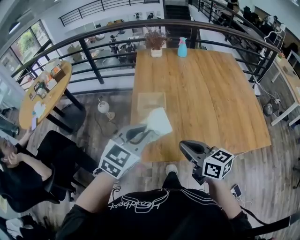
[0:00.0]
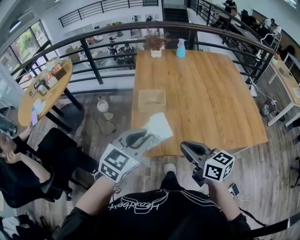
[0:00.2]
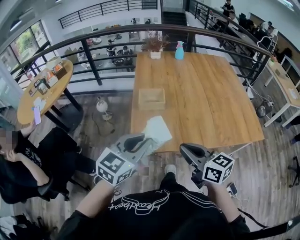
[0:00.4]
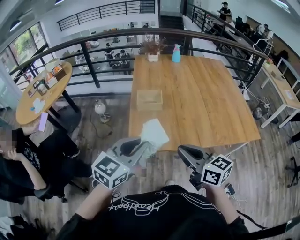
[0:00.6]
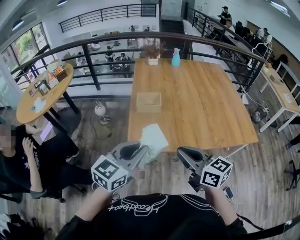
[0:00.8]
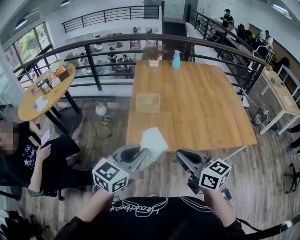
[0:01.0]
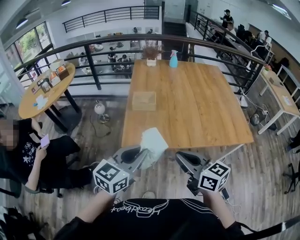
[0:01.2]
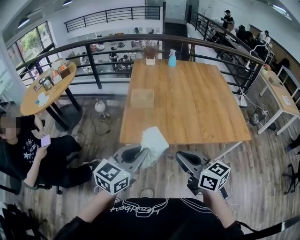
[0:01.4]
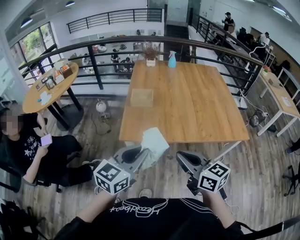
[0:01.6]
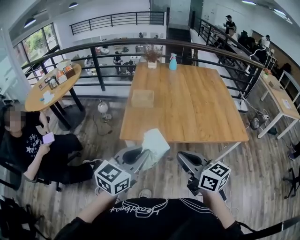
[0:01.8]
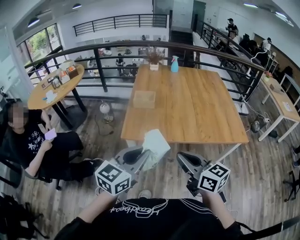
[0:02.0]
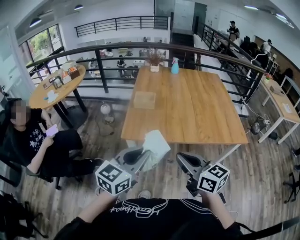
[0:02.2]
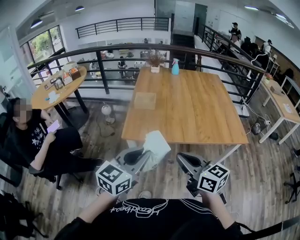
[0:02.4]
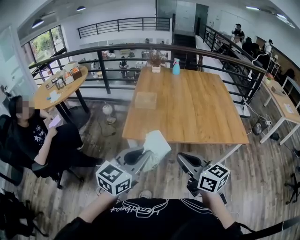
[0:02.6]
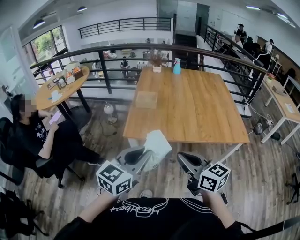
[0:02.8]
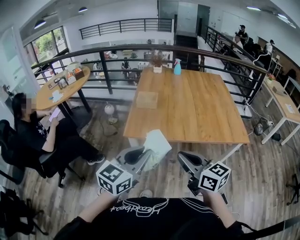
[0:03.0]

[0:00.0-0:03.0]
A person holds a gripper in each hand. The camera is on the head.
0:00.0 to 0:01.6: Both grippers move backward, some 30 cm. The left gripper rotates approximately 20 degrees.
0:01.6 to 0:03.0: Both grippers move backward, approximately 10 cm.

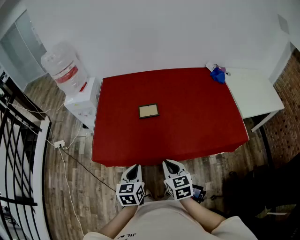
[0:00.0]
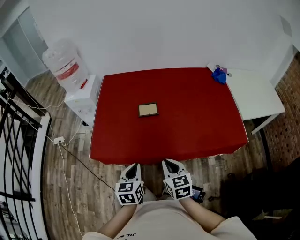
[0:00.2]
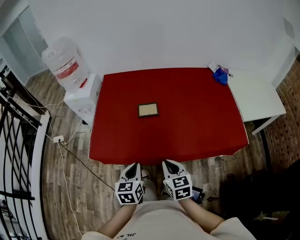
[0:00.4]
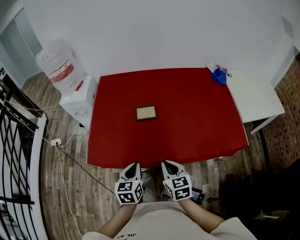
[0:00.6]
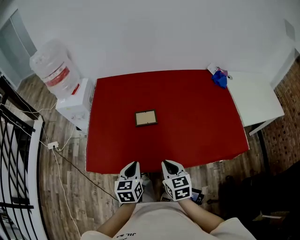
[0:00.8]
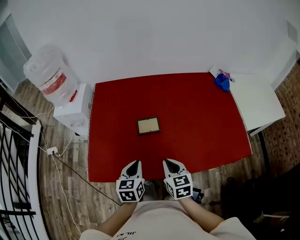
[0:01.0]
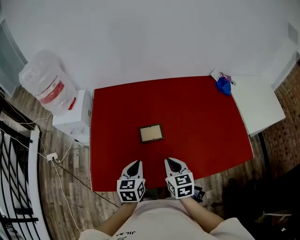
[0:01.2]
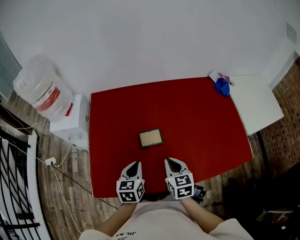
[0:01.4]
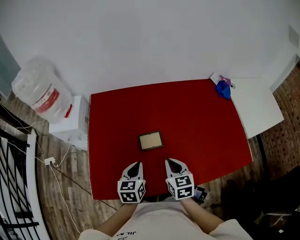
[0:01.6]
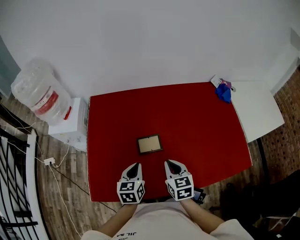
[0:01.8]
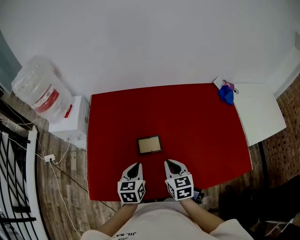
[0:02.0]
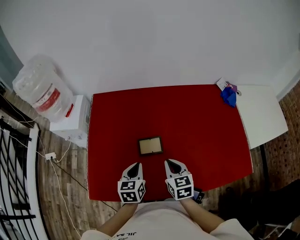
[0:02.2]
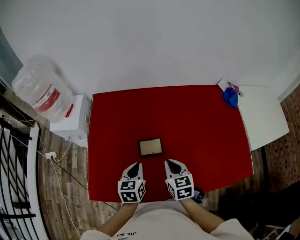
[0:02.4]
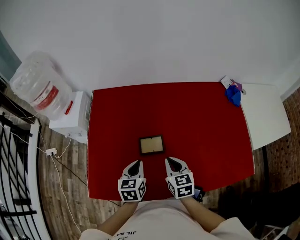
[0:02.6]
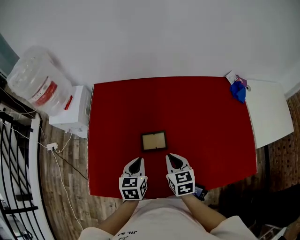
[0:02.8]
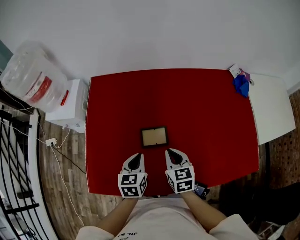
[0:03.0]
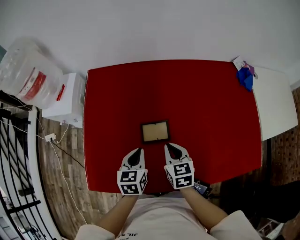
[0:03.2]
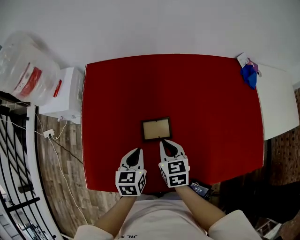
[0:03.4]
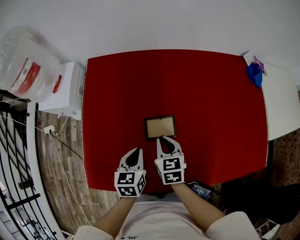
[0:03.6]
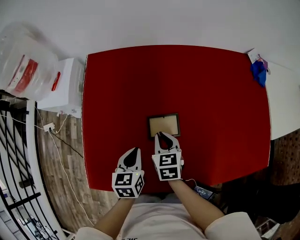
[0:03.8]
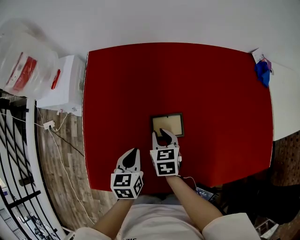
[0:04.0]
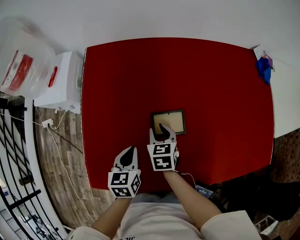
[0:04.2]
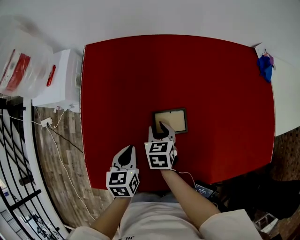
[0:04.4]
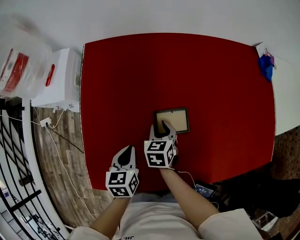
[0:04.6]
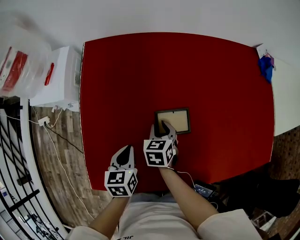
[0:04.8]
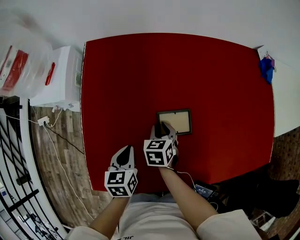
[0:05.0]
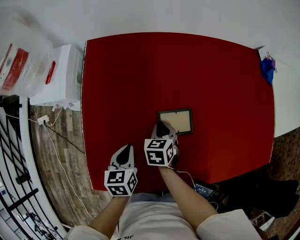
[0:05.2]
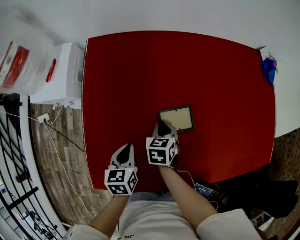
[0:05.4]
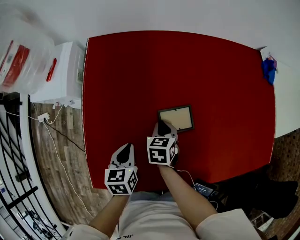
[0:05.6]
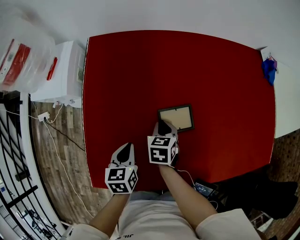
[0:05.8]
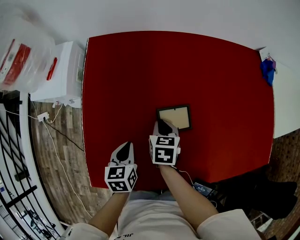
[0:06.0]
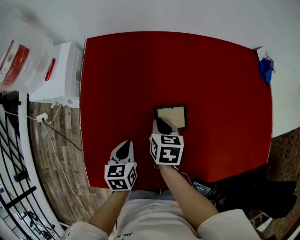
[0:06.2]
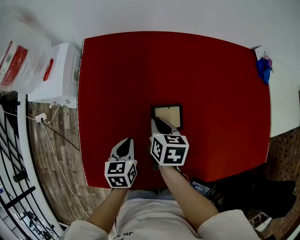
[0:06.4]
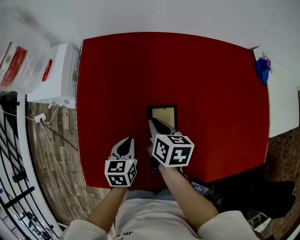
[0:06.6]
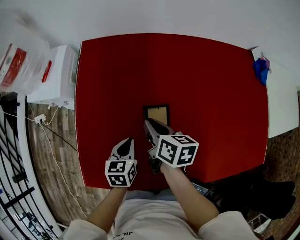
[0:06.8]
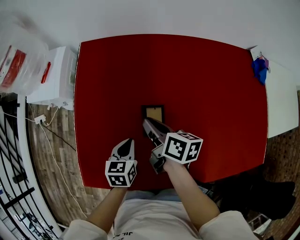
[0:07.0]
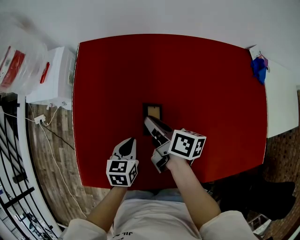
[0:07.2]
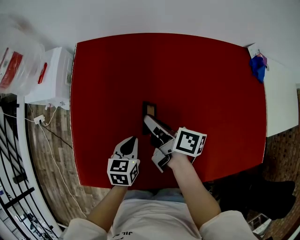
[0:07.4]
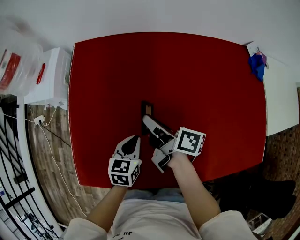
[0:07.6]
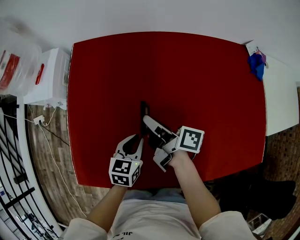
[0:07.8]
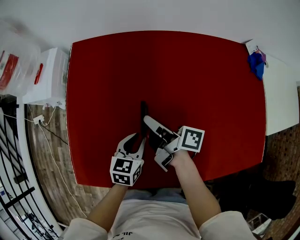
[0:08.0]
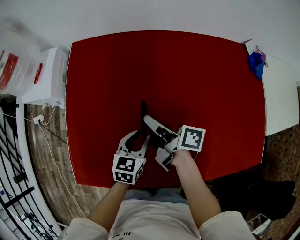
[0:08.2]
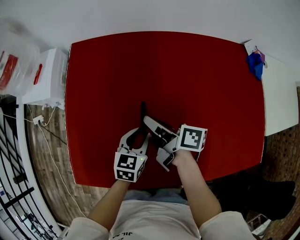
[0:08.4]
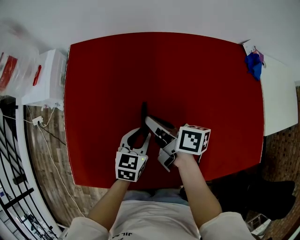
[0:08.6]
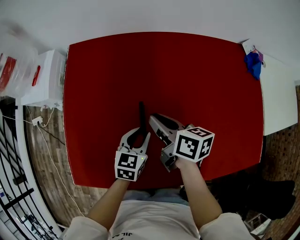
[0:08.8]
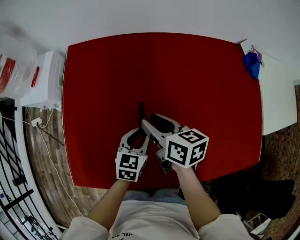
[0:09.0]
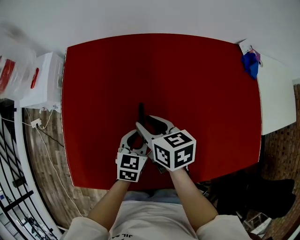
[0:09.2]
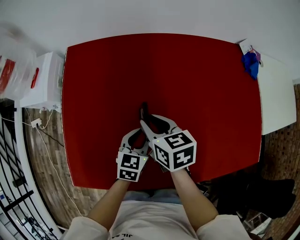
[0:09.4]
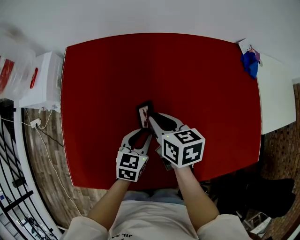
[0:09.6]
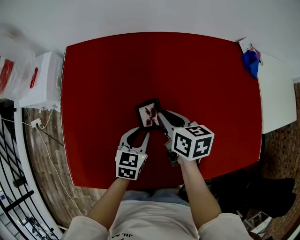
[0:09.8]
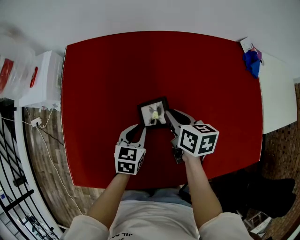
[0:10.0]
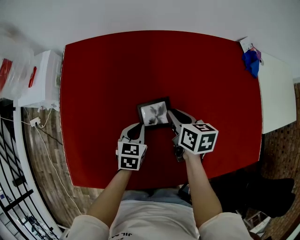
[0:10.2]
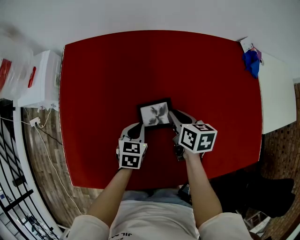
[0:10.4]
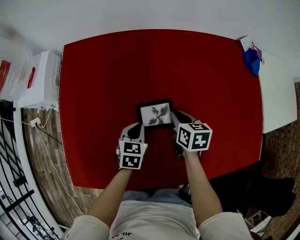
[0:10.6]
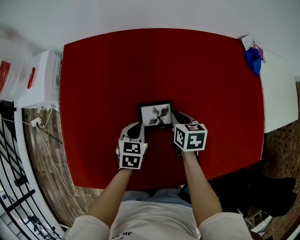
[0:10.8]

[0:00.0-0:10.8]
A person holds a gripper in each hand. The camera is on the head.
0:00.0 to 0:01.6: The grippers both shift forward by about 25 cm.
0:01.6 to 0:03.0: Both grippers travel together forward, some 5 cm.
0:03.0 to 0:04.6: The left gripper travels to the left and downward by some 15 cm. The right gripper heads downward, to the left and forward, covering roughly 20 cm, and opens.
0:04.6 to 0:06.2: The grippers stay close to where they were, moving slightly.
0:06.2 to 0:07.8: The right gripper travels upward by about 10 cm, and points its fingers about 40 degrees further upward. The left gripper shifts roughly 15 cm to the right.
0:07.8 to 0:09.2: The right gripper rolls counterclockwise, seen from behind, by some 40 degrees, and opens, while the left gripper goes approximately 5 cm to the right.
0:09.2 to 0:10.8: The left gripper goes about 5 cm downward, and closes its fingers, while the right gripper is displaced to the right and downward by approximately 20 cm, turns by roughly 20 degrees, and closes up.

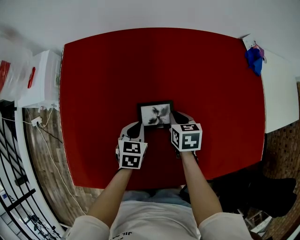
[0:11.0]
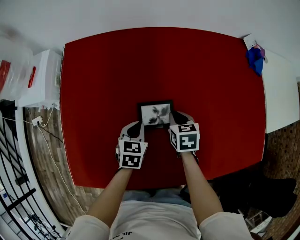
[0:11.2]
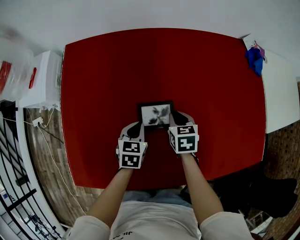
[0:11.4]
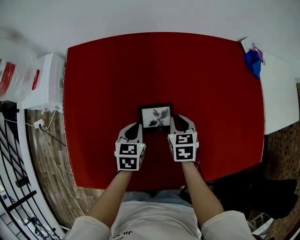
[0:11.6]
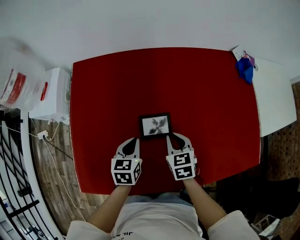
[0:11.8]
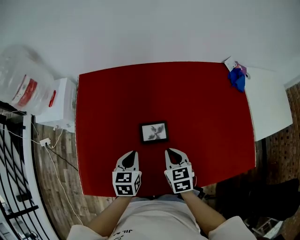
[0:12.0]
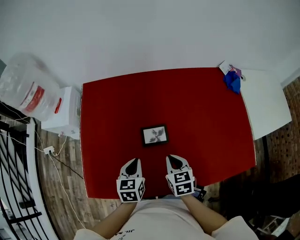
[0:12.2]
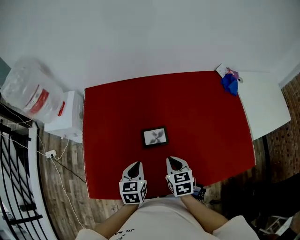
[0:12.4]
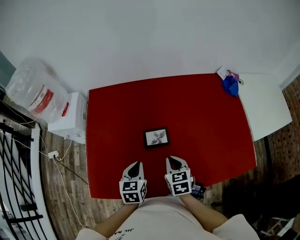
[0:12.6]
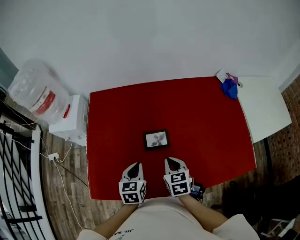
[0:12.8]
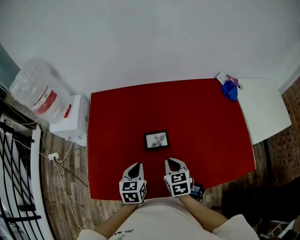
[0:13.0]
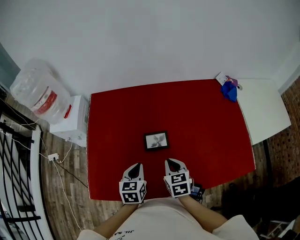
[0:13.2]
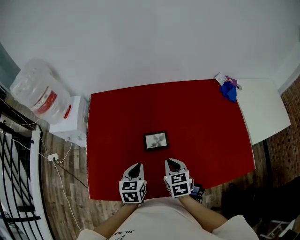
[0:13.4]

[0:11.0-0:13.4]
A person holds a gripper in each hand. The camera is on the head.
0:11.0 to 0:12.2: Both grippers move upward and backward, about 20 cm.
0:12.2 to 0:13.4: There are only small adjustments of the grippers.

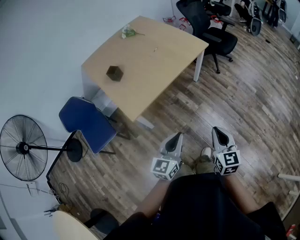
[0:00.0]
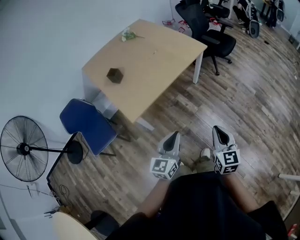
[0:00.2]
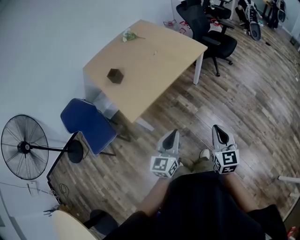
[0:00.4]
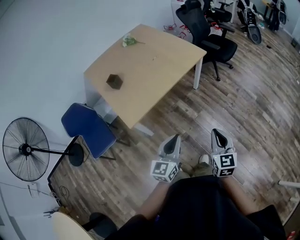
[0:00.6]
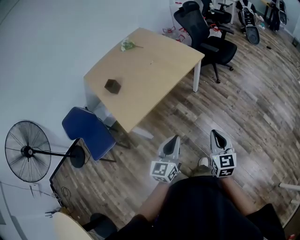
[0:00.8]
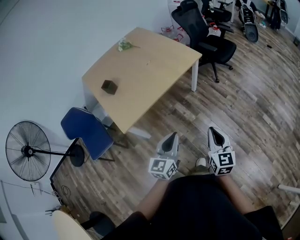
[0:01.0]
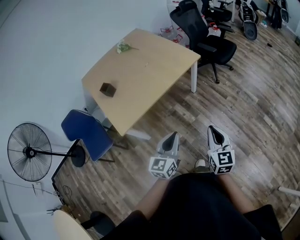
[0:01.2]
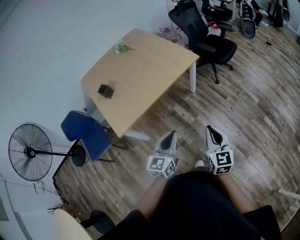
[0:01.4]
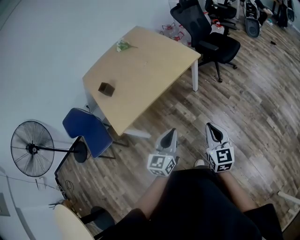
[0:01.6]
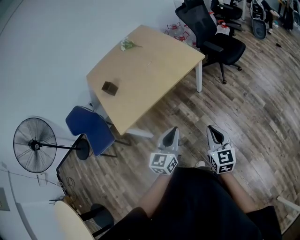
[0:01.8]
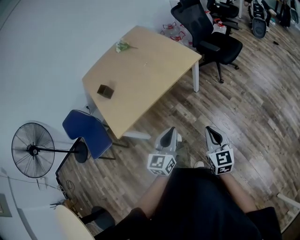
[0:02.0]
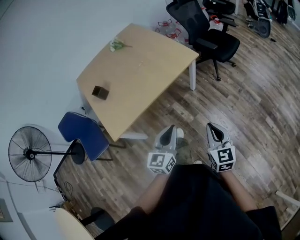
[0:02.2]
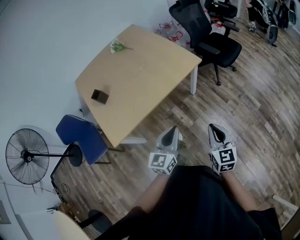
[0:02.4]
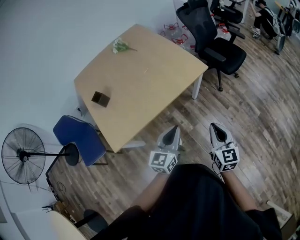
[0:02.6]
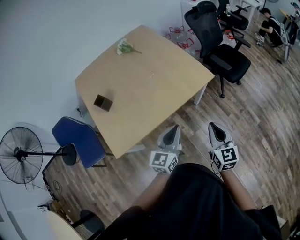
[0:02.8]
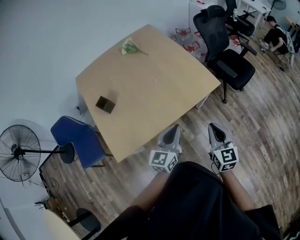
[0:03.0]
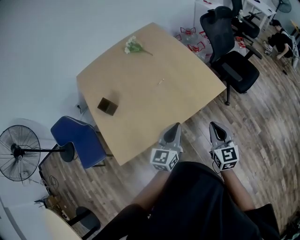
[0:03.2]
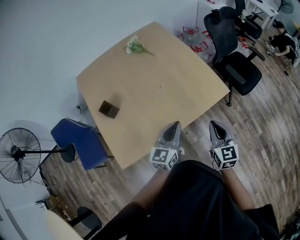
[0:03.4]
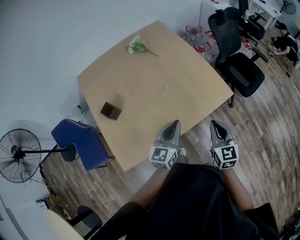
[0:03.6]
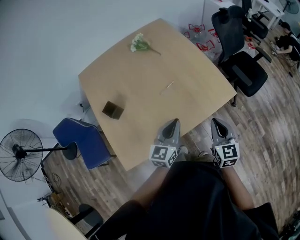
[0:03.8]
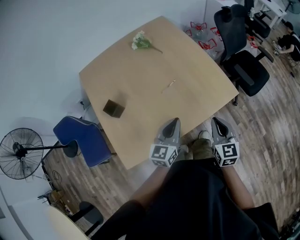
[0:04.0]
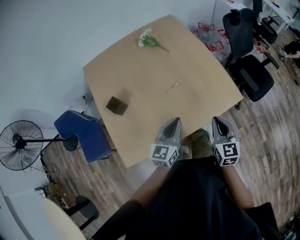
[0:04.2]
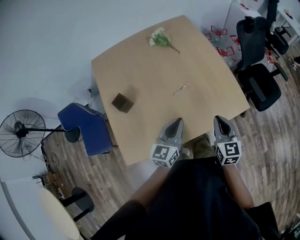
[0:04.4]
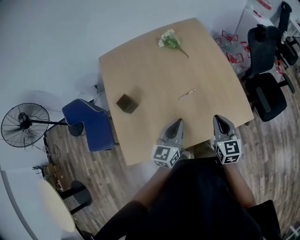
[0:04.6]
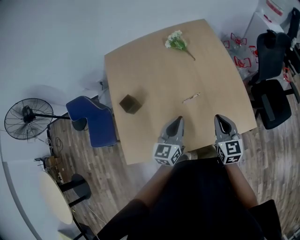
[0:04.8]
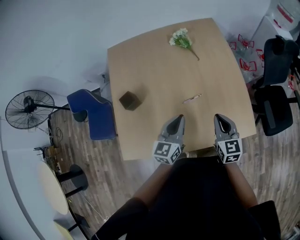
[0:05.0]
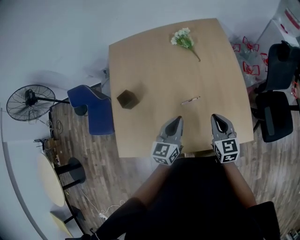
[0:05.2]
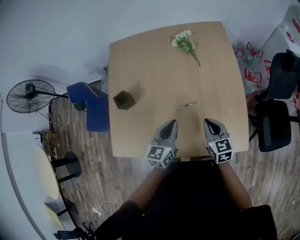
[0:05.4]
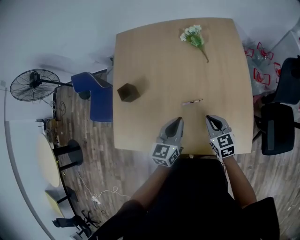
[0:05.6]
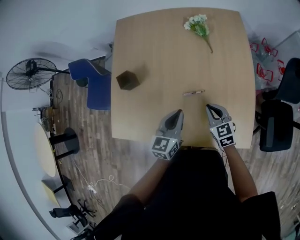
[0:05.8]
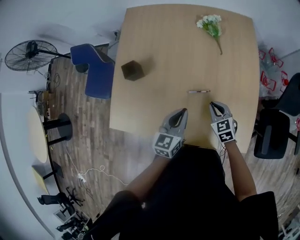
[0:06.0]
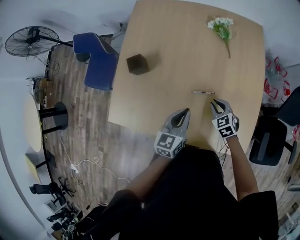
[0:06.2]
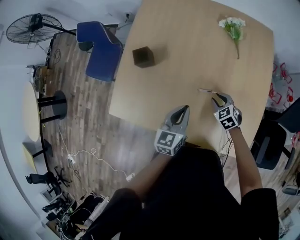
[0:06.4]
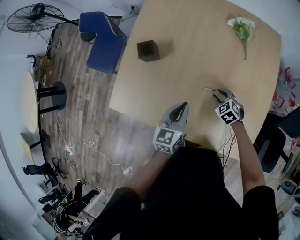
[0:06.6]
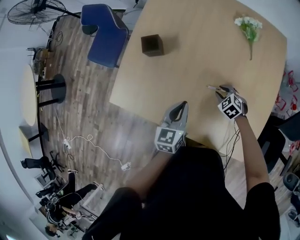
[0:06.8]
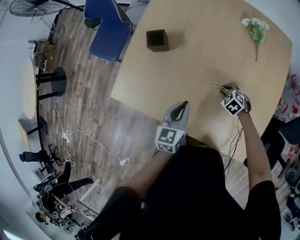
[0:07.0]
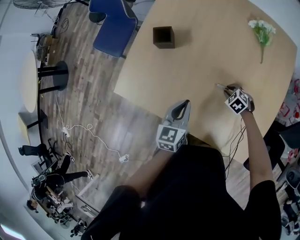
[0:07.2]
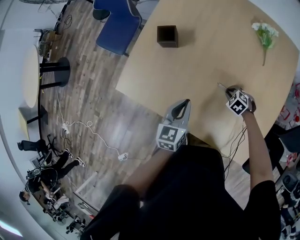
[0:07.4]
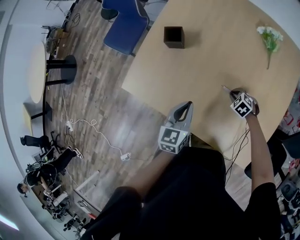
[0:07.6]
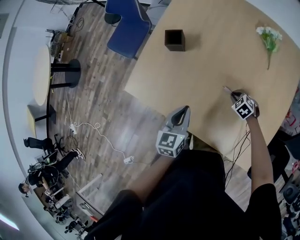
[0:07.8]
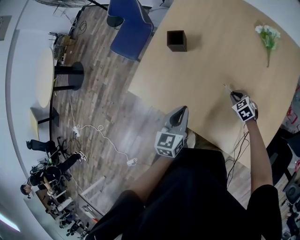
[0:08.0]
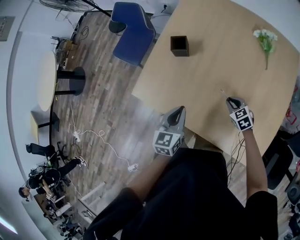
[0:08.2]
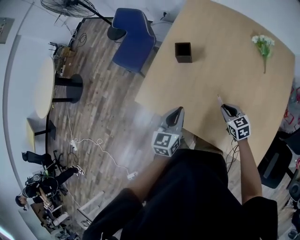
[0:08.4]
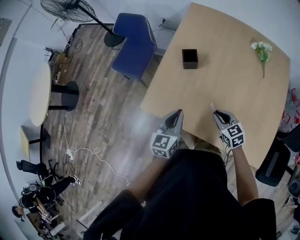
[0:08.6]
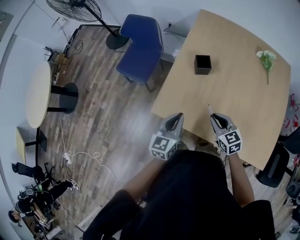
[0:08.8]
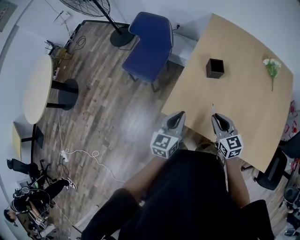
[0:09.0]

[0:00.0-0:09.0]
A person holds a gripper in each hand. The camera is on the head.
0:00.0 to 0:01.6: Both grippers move to the right and forward, roughly 25 cm.
0:01.6 to 0:03.0: The two grippers go approximately 35 cm forward.
0:03.0 to 0:04.4: The grippers both shift forward and to the left by roughly 25 cm.
0:04.4 to 0:06.0: The left gripper shifts by approximately 20 cm, and swivels roughly 30 degrees, while the right gripper shifts by about 30 cm, and turns by roughly 50 degrees.
0:06.0 to 0:07.6: The right gripper is displaced downward by some 20 cm, and tips its fingers downward by roughly 30 degrees. Meanwhile the left gripper ends up approximately 15 cm from where it was, and rotates about 20 degrees.
0:07.6 to 0:09.0: The left gripper shifts approximately 35 cm to the left; the right gripper travels to the left and upward by roughly 50 cm, and tilts its fingers some 50 degrees upward.
